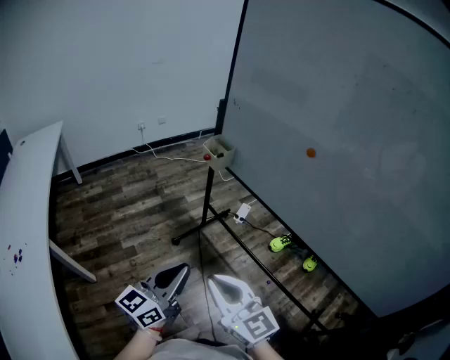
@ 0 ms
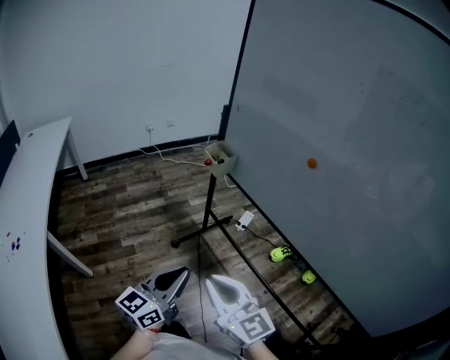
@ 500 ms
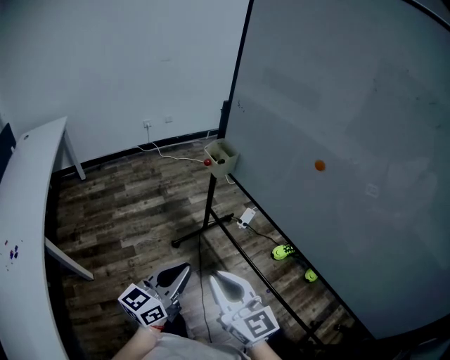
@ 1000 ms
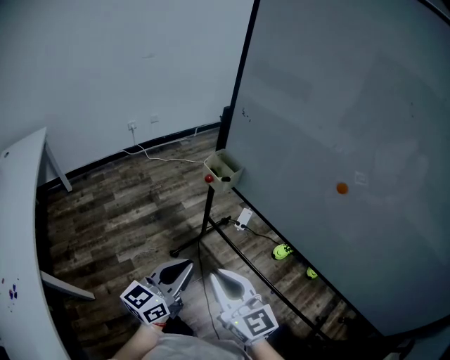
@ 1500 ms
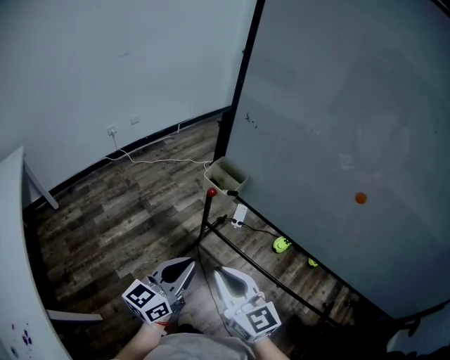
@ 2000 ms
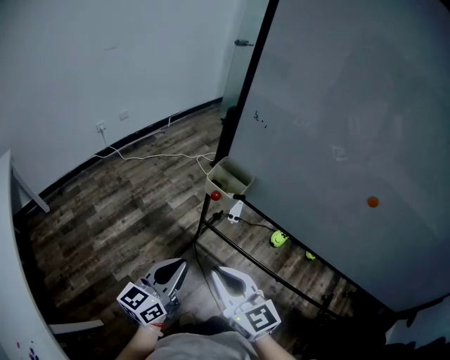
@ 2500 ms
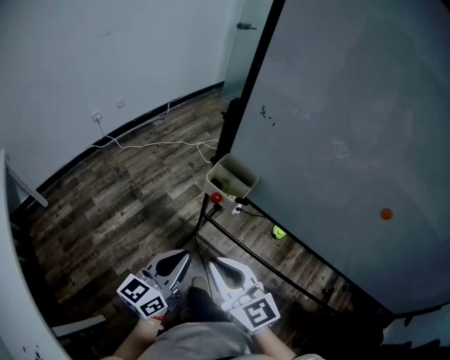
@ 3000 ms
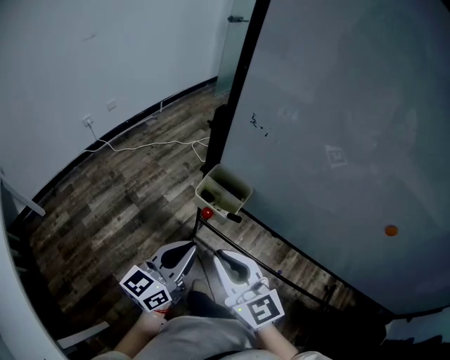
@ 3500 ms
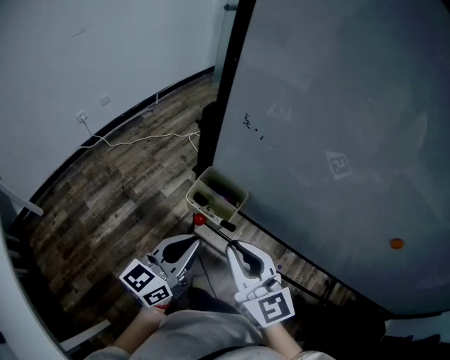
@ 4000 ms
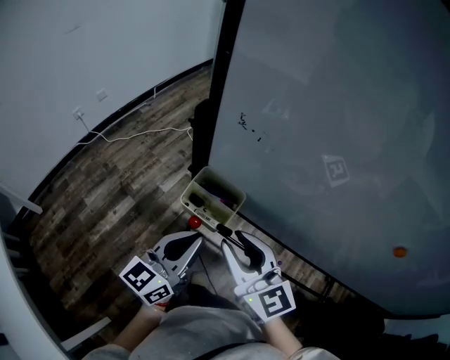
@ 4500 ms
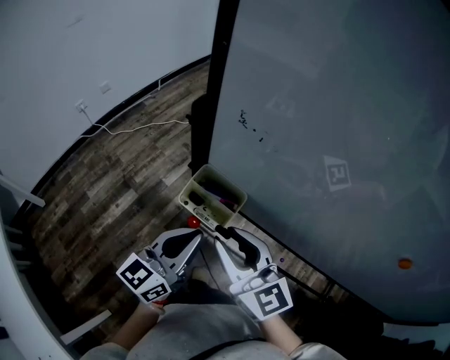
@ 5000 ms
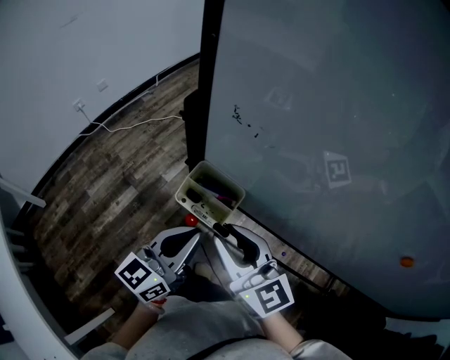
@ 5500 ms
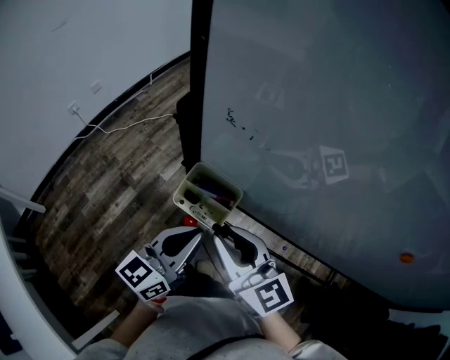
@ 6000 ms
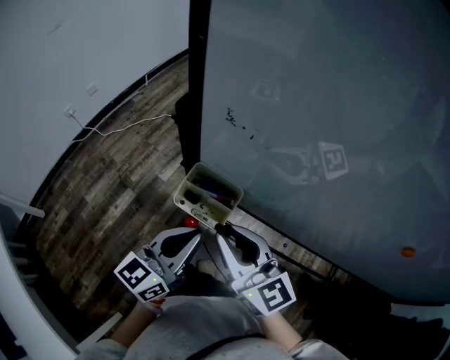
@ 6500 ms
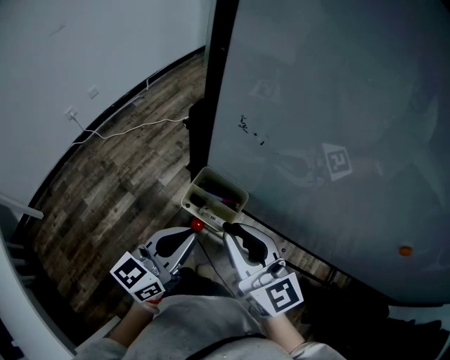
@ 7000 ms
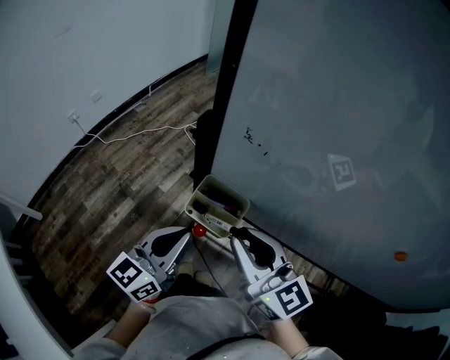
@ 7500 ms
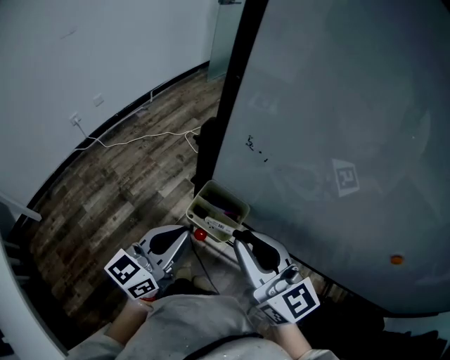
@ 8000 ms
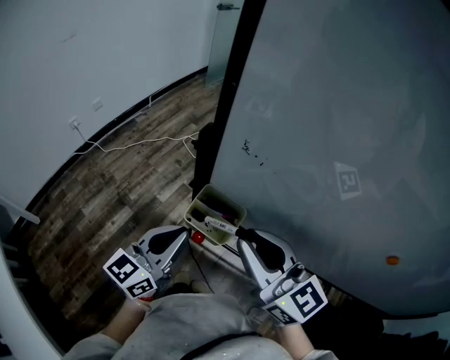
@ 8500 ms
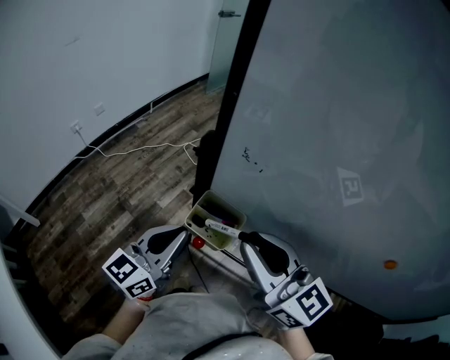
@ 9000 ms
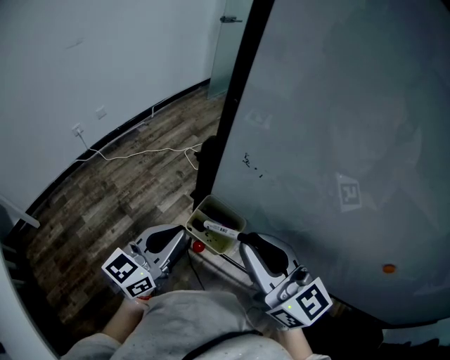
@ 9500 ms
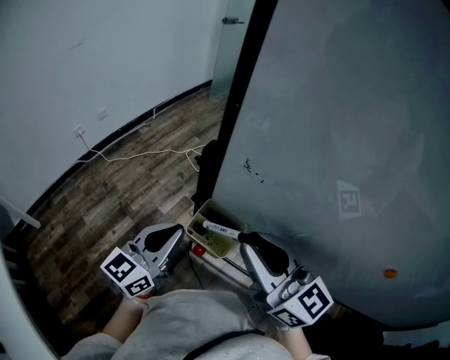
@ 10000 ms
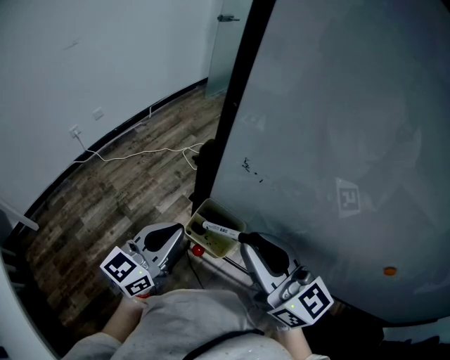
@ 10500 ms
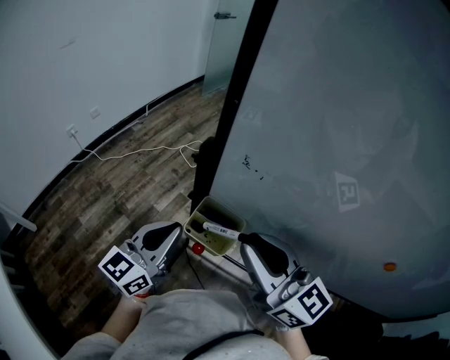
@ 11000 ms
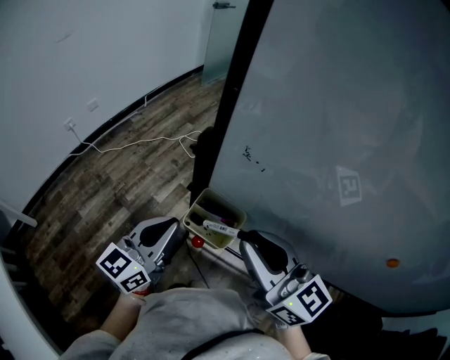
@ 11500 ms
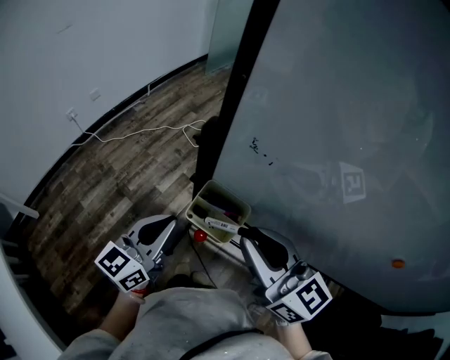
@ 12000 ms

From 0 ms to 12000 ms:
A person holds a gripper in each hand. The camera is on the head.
From 0 ms to 2000 ms: The grippers both shift forward by approximately 30 cm.
From 2000 ms to 4000 ms: Both grippers travel together forward, about 20 cm.
From 4000 ms to 6000 ms: The grippers make only small movements.
From 6000 ms to 8000 ms: The left gripper goes about 5 cm to the left, while the right gripper moves upward, approximately 5 cm.
From 8000 ms to 10000 ms: The right gripper ends up some 5 cm from where it was.
From 10000 ms to 12000 ms: The grippers move only a little.

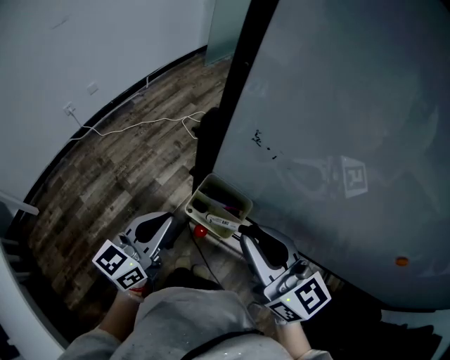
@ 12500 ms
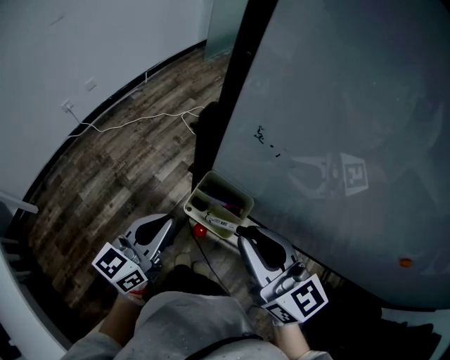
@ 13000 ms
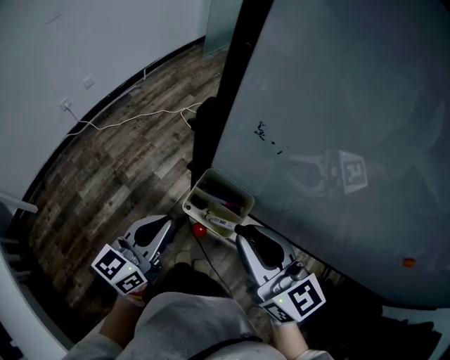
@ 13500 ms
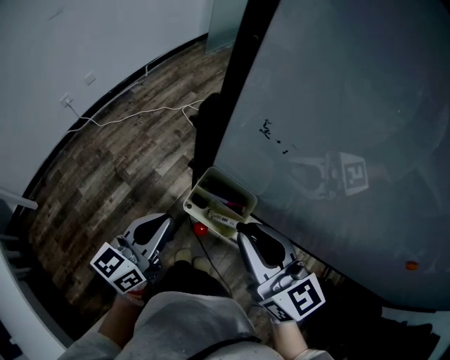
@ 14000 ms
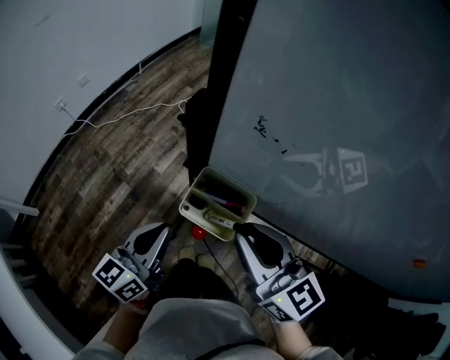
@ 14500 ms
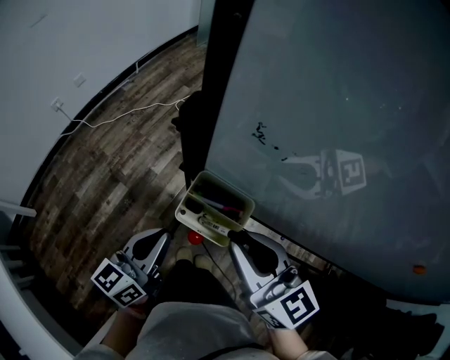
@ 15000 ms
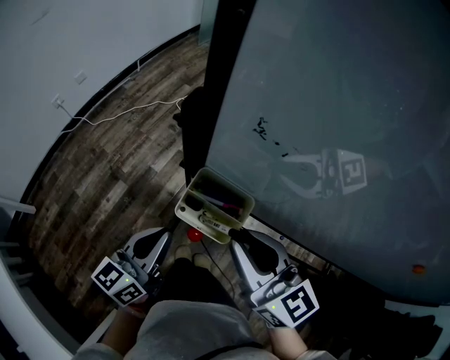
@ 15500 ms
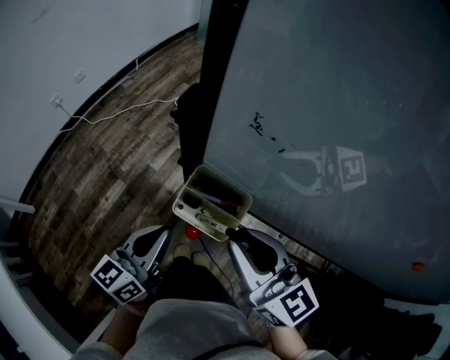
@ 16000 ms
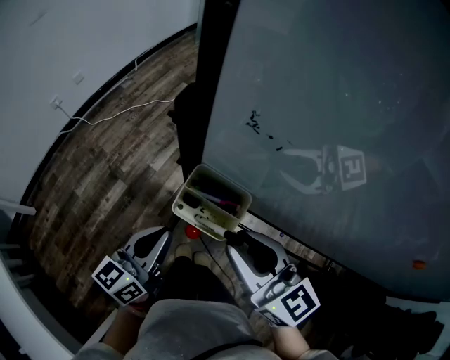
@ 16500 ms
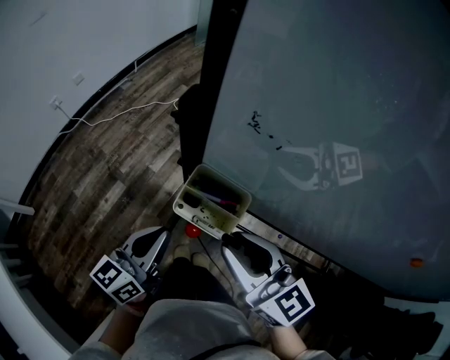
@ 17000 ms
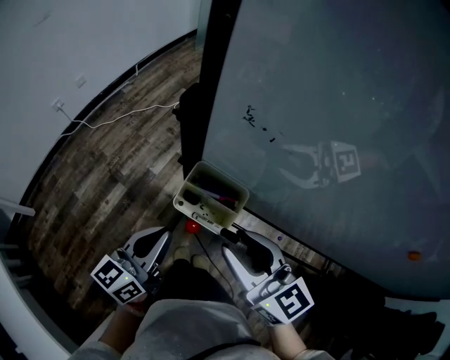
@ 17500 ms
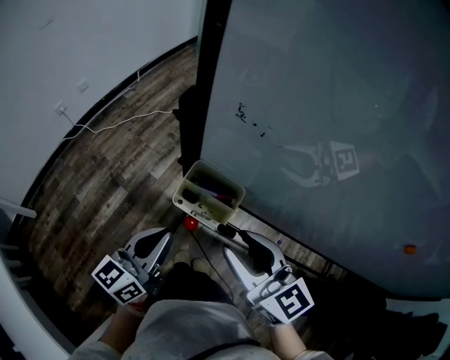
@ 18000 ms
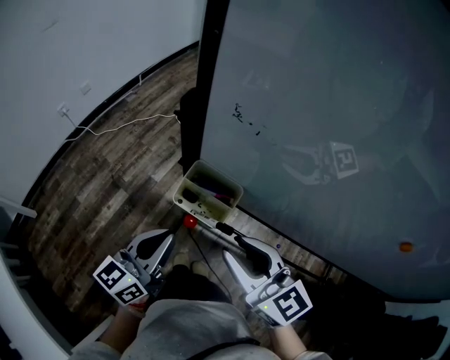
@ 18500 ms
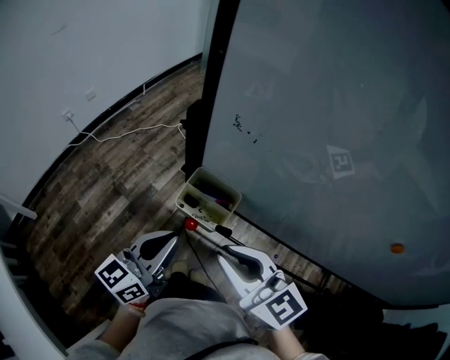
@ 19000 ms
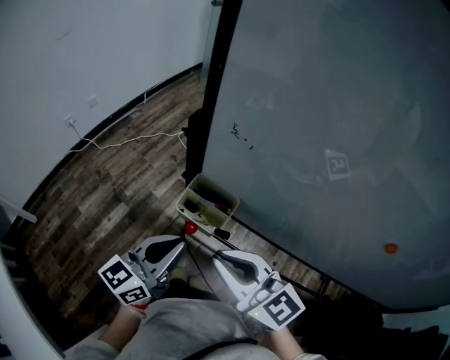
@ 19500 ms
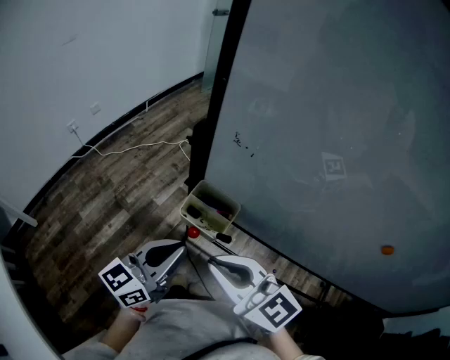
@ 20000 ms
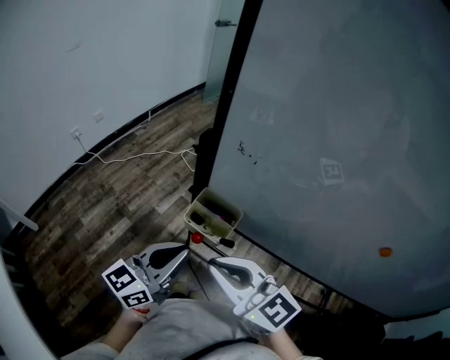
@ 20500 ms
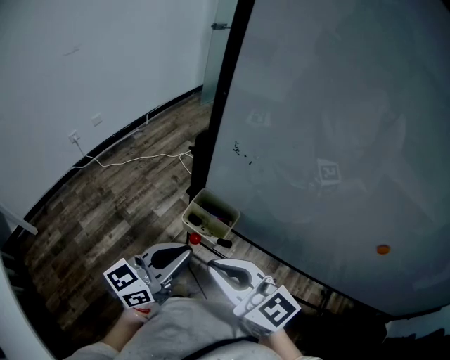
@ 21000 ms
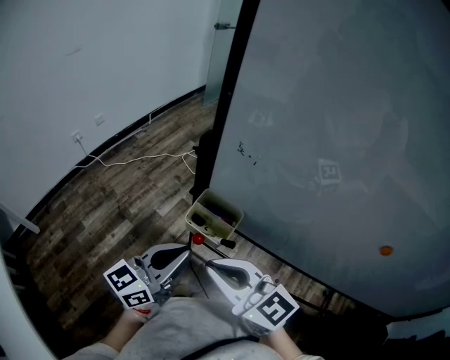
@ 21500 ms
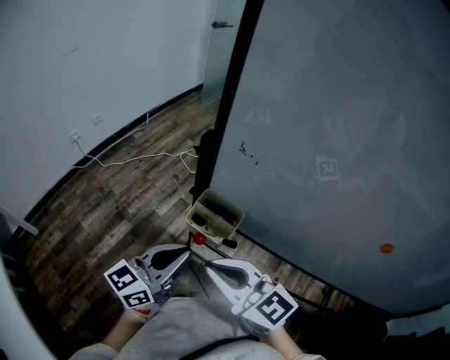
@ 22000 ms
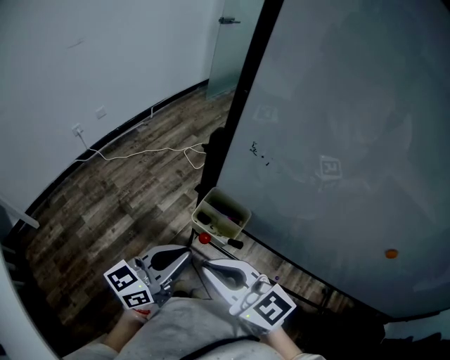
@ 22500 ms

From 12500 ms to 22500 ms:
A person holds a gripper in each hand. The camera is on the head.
From 12500 ms to 14500 ms: The right gripper heads downward, covering about 5 cm.
From 14500 ms to 18500 ms: The grippers move only a little.
From 18500 ms to 20500 ms: The right gripper travels to the left by approximately 5 cm, and closes up. The left gripper moves upward, about 5 cm.
From 20500 ms to 22500 ms: The grippers make only small movements.

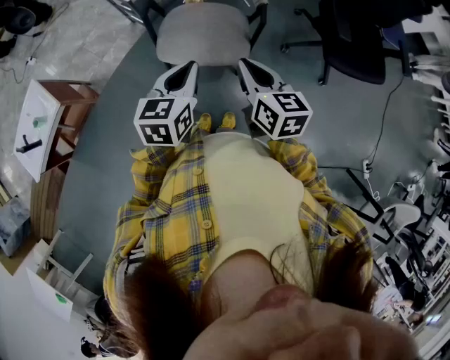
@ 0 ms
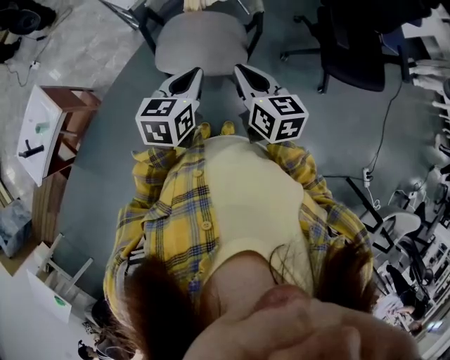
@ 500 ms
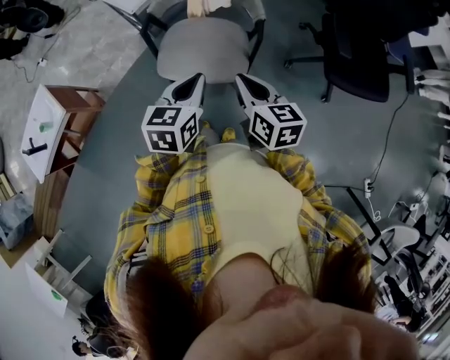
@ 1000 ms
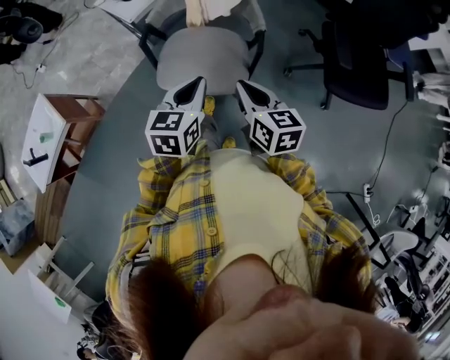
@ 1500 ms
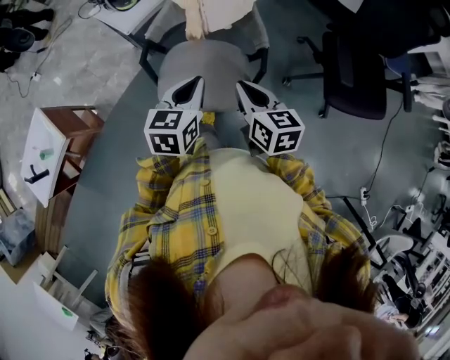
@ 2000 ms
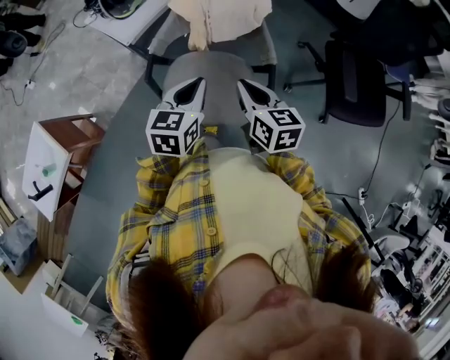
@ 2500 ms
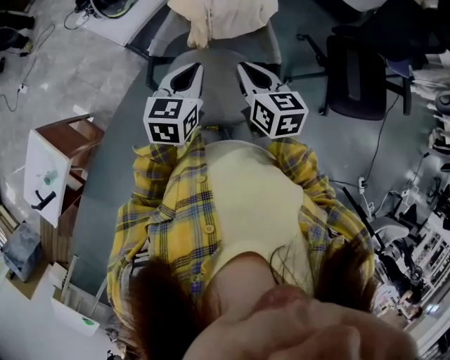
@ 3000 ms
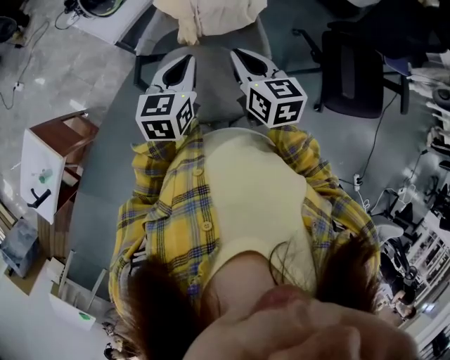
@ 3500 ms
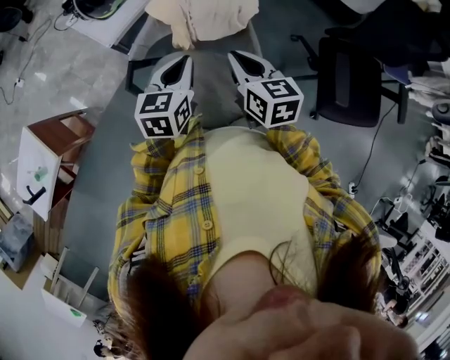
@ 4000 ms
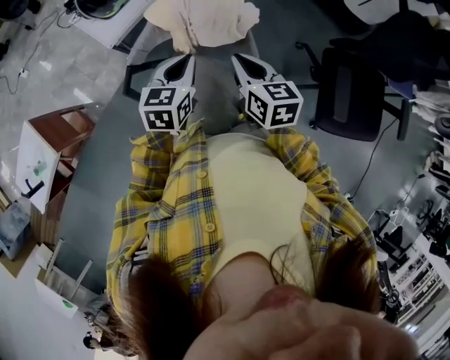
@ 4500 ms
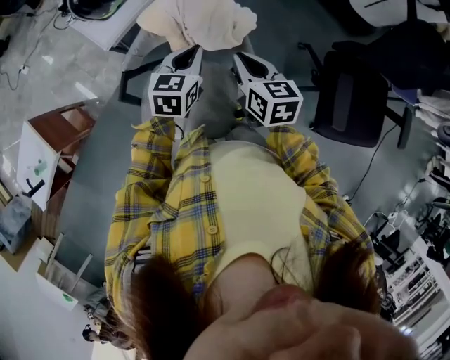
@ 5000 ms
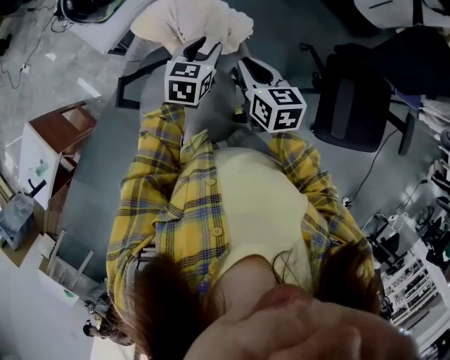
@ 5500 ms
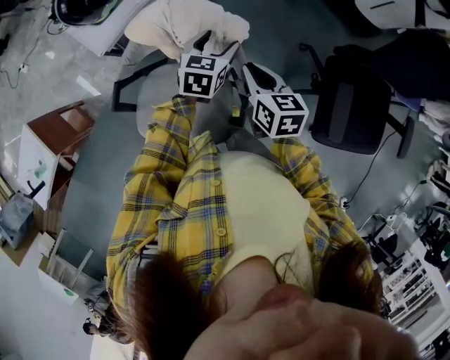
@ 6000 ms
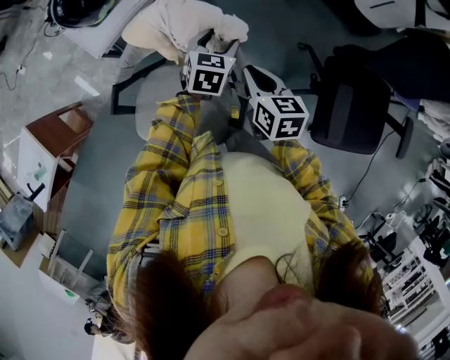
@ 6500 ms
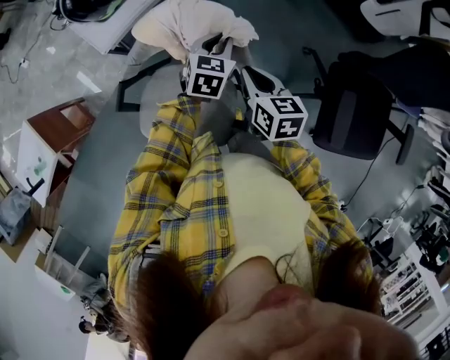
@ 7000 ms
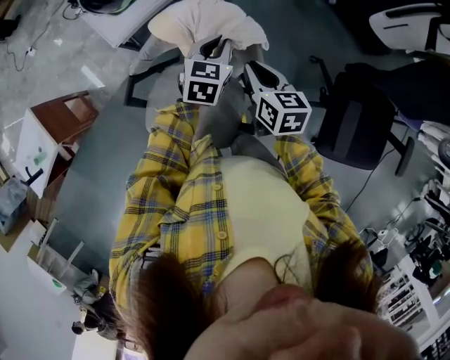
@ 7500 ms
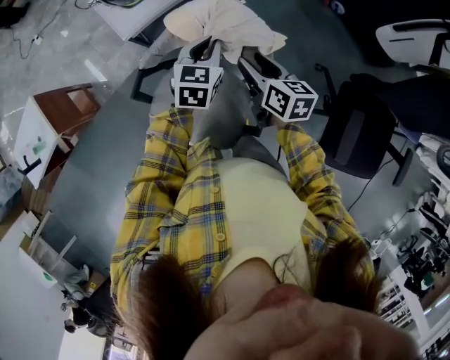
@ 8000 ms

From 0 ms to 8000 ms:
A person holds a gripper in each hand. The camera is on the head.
From 0 ms to 2000 ms: The grippers both shift forward by roughly 15 cm.
From 2000 ms to 4000 ms: Both grippers travel together forward, some 20 cm.
From 4000 ms to 6000 ms: The right gripper moves to the right, forward and downward, about 15 cm; the left gripper travels forward, to the right and downward by about 25 cm, and opens its fingers.
From 6000 ms to 8000 ms: The right gripper goes roughly 10 cm to the left and forward, and opens. Meanwhile the left gripper shifts about 10 cm to the left, and closes.
